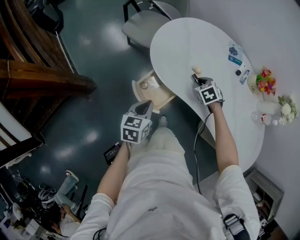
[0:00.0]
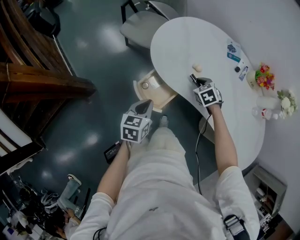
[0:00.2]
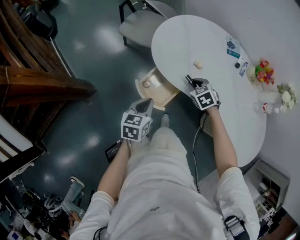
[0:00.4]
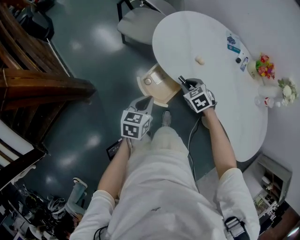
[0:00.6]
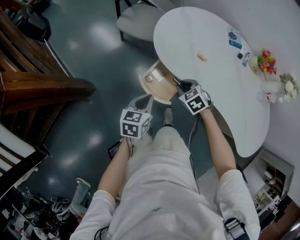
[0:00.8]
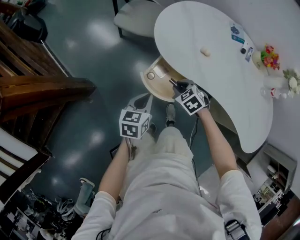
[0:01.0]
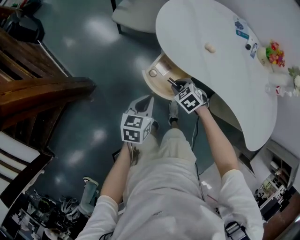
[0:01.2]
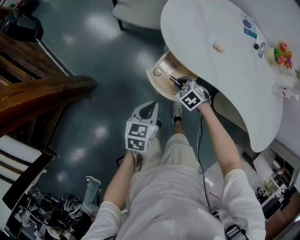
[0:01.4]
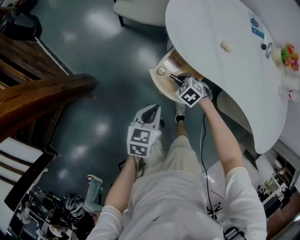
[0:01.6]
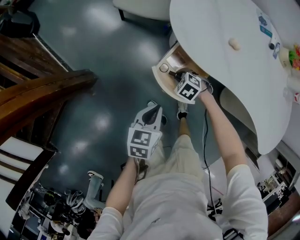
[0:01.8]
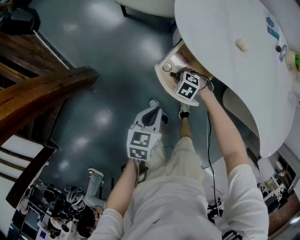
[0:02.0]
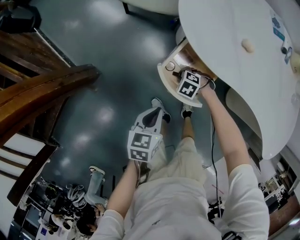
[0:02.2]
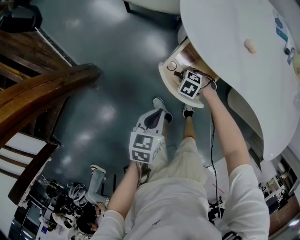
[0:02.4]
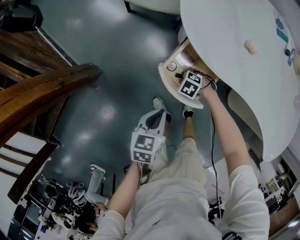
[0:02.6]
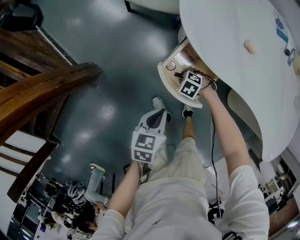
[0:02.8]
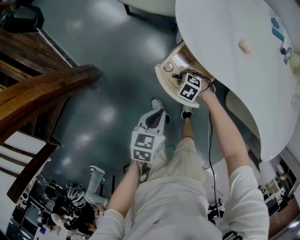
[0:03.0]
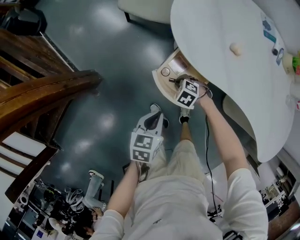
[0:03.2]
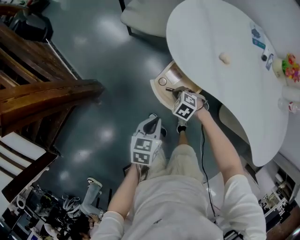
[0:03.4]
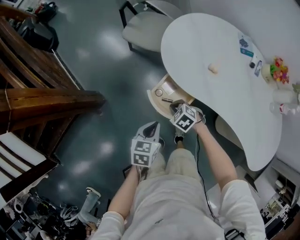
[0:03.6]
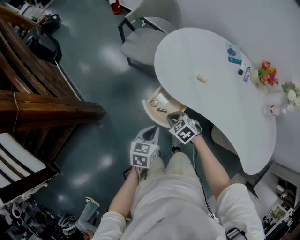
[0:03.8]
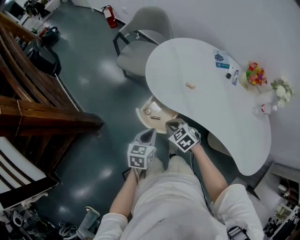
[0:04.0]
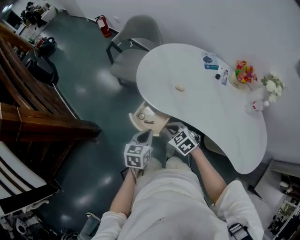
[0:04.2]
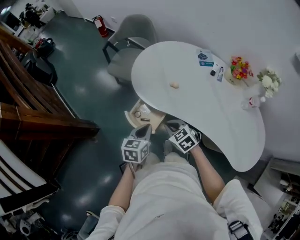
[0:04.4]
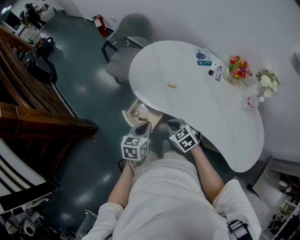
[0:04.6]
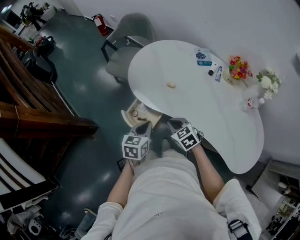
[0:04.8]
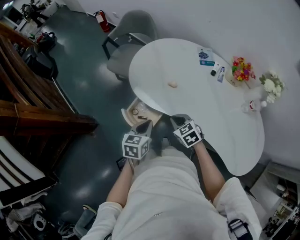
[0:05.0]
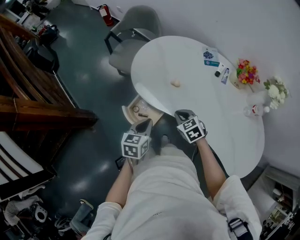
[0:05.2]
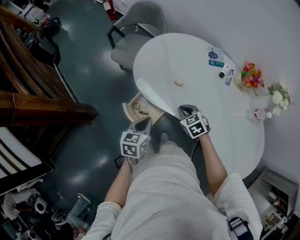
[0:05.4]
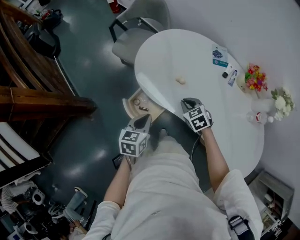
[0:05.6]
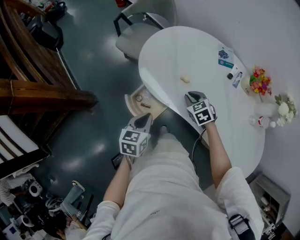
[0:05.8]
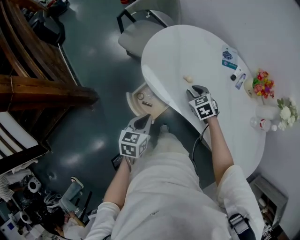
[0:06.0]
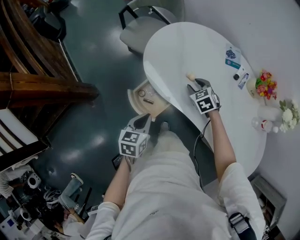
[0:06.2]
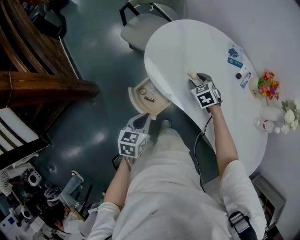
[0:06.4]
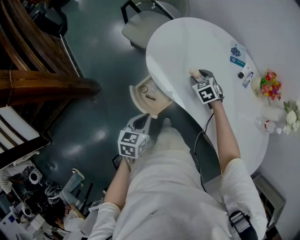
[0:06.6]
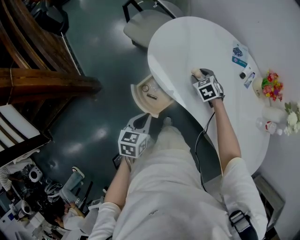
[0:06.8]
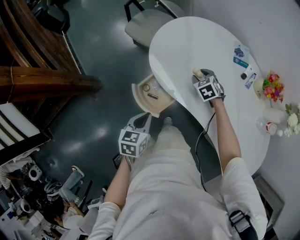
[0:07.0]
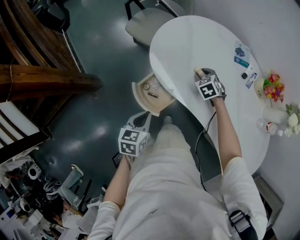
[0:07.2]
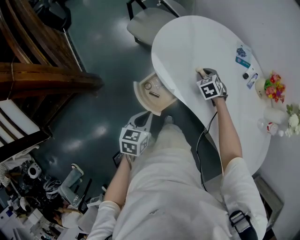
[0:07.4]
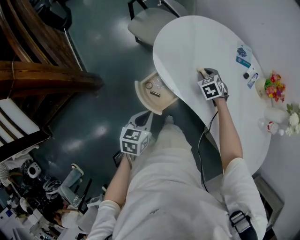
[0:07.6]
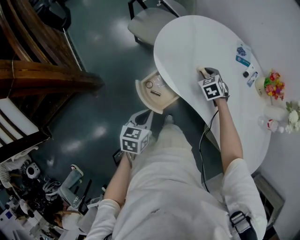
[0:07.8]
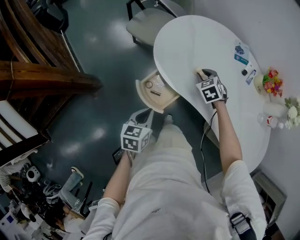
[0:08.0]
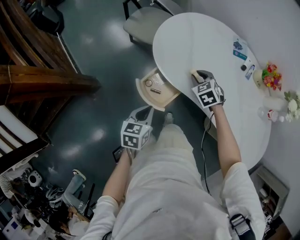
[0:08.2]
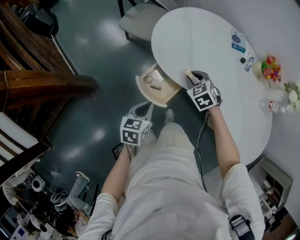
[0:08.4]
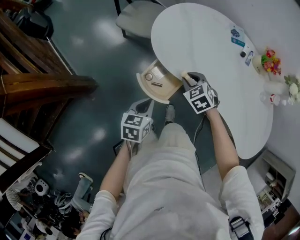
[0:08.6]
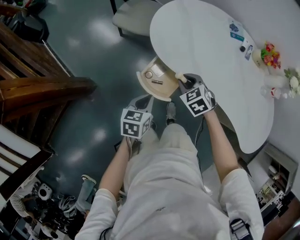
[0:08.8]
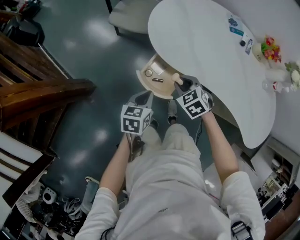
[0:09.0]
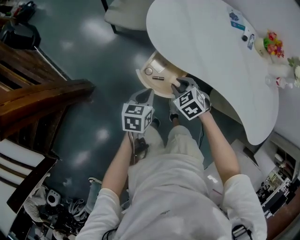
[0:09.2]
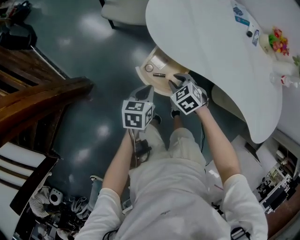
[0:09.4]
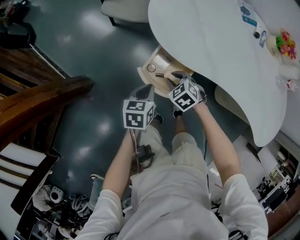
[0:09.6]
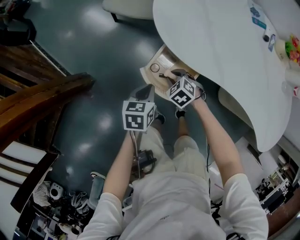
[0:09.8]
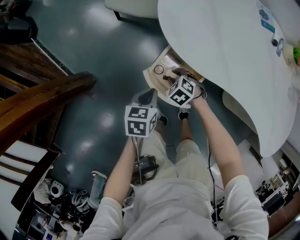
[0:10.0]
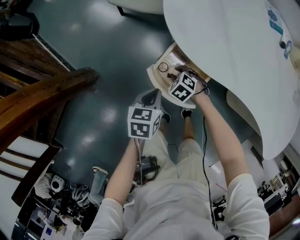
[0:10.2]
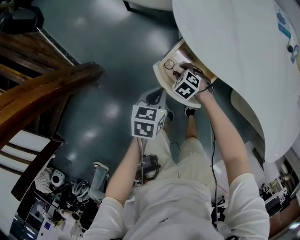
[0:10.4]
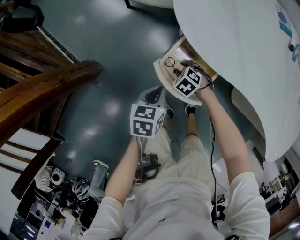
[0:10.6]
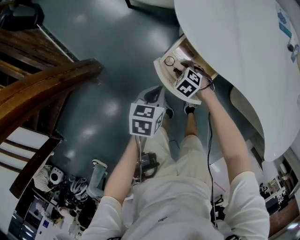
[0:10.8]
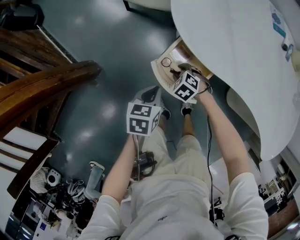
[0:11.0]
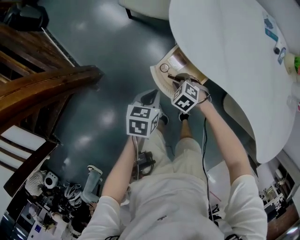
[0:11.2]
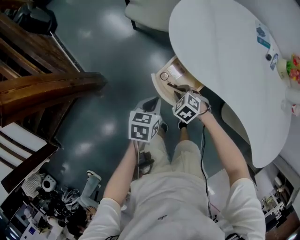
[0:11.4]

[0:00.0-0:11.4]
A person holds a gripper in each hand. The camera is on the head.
0:00.0 to 0:01.4: The left gripper heads to the left and downward, covering about 10 cm. Meanwhile the right gripper moves to the left, backward and downward, approximately 25 cm.
0:01.4 to 0:02.8: The left gripper moves downward, about 10 cm; the right gripper is displaced downward by about 15 cm, and turns by roughly 20 degrees.
0:02.8 to 0:04.2: The left gripper travels upward by about 20 cm, while the right gripper travels upward by some 35 cm, and rotates approximately 40 degrees.
0:04.2 to 0:05.6: The right gripper goes some 20 cm to the right and forward; the left gripper heads to the right, covering some 5 cm.
0:05.6 to 0:07.2: The right gripper heads forward and downward, covering approximately 15 cm; the left gripper shifts about 5 cm to the left.
0:07.2 to 0:08.6: The left gripper moves to the left, roughly 5 cm. Meanwhile the right gripper travels backward, to the left and upward by about 20 cm.
0:08.6 to 0:10.0: The right gripper travels downward and to the left by about 30 cm, while the left gripper goes some 15 cm downward.
0:10.0 to 0:11.4: Both grippers travel together upward, roughly 10 cm.

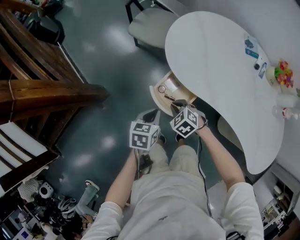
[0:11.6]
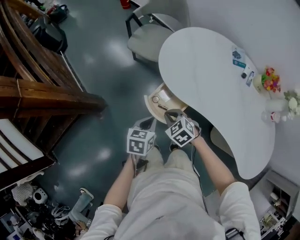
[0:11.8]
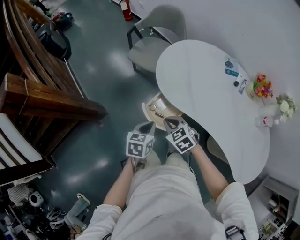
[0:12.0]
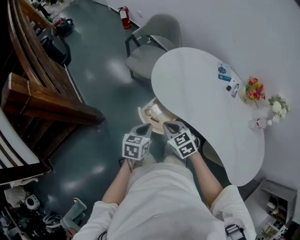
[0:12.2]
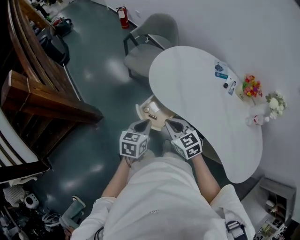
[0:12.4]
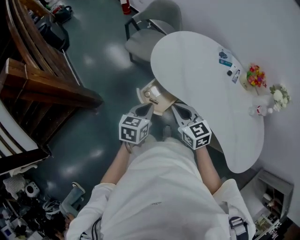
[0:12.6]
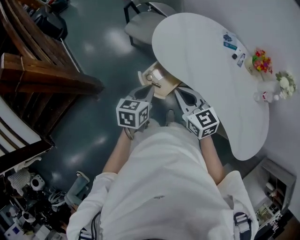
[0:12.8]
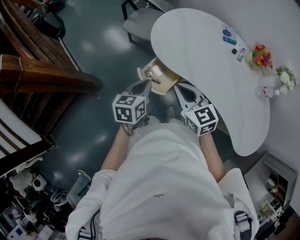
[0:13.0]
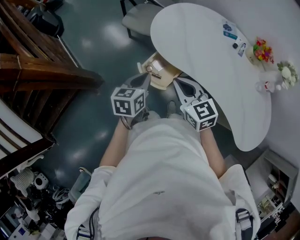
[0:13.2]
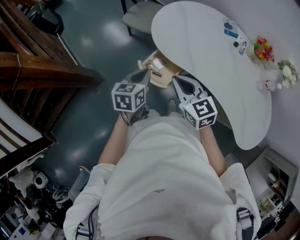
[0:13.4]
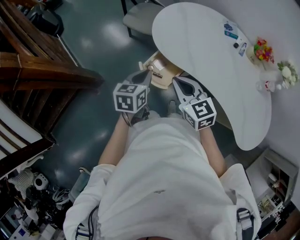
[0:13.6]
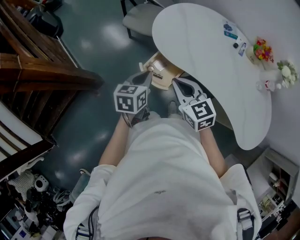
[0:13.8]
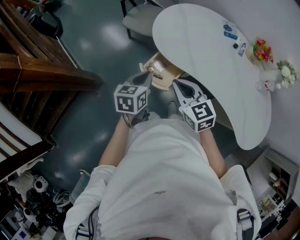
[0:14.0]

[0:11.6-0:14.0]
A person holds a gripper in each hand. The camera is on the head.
0:11.6 to 0:12.8: The left gripper is displaced upward by some 15 cm. The right gripper shifts roughly 25 cm upward, and points its fingers approximately 40 degrees further upward.
0:12.8 to 0:14.0: The grippers stay close to where they were, moving slightly.

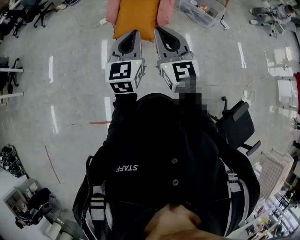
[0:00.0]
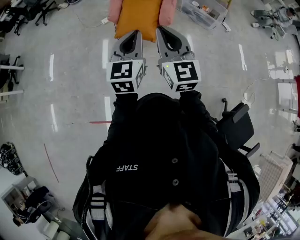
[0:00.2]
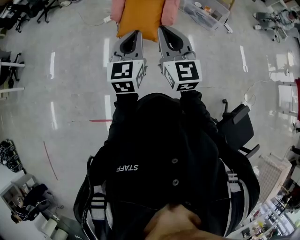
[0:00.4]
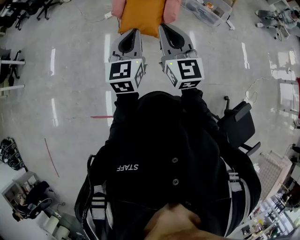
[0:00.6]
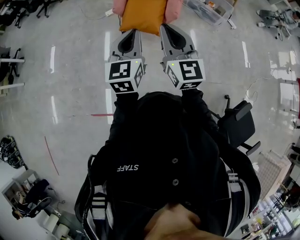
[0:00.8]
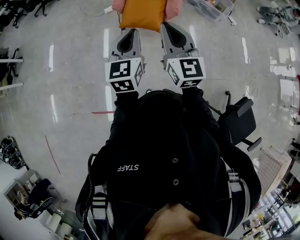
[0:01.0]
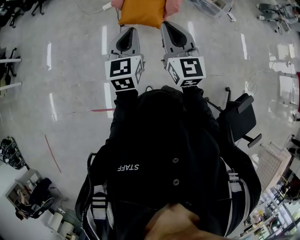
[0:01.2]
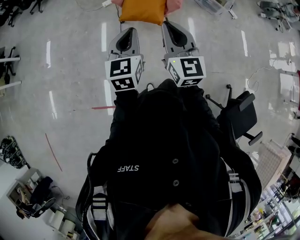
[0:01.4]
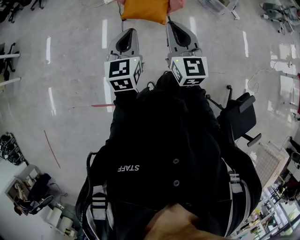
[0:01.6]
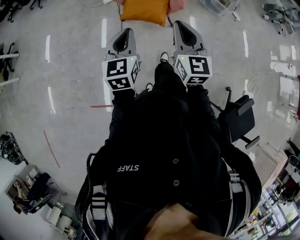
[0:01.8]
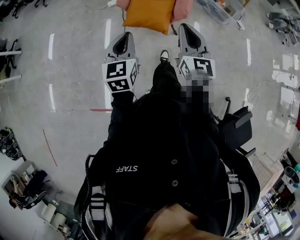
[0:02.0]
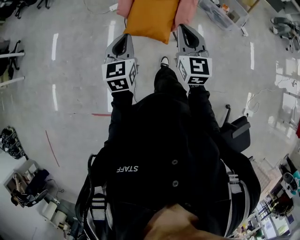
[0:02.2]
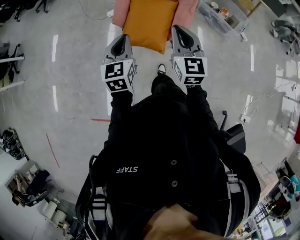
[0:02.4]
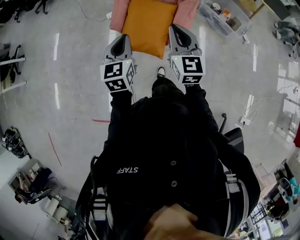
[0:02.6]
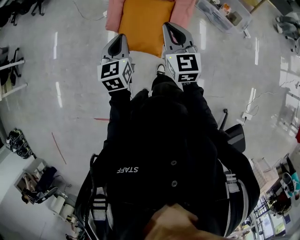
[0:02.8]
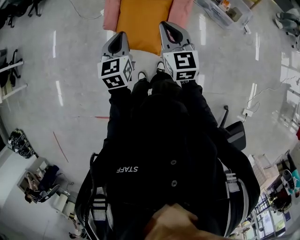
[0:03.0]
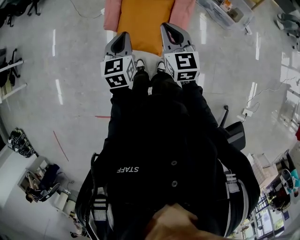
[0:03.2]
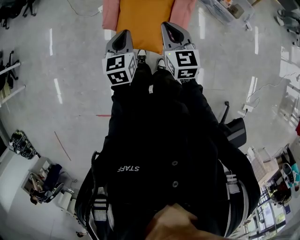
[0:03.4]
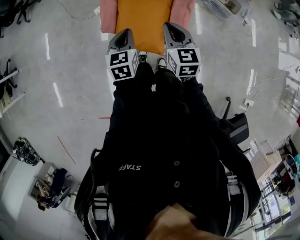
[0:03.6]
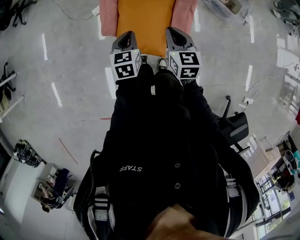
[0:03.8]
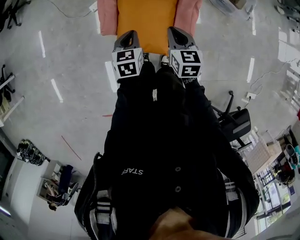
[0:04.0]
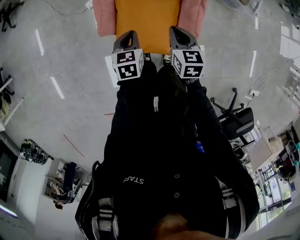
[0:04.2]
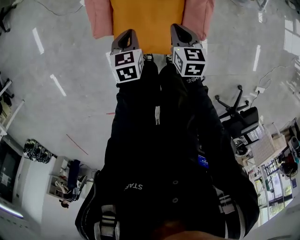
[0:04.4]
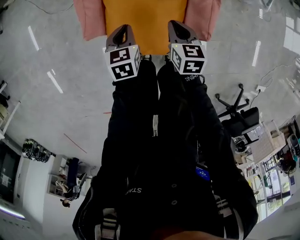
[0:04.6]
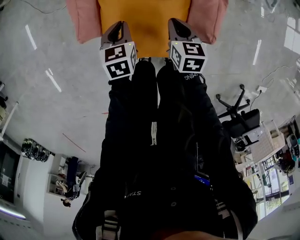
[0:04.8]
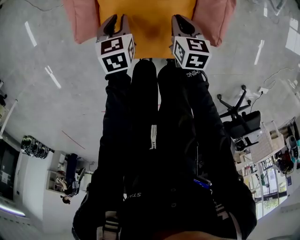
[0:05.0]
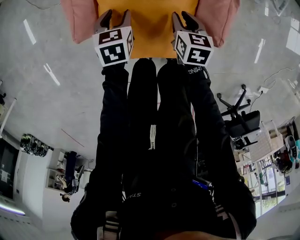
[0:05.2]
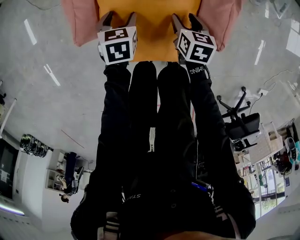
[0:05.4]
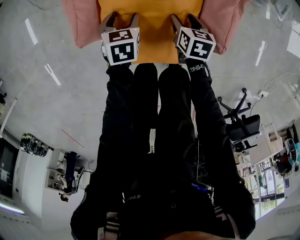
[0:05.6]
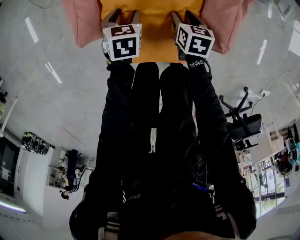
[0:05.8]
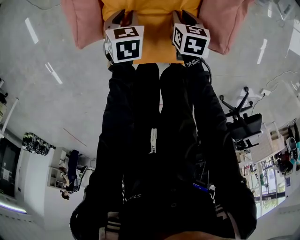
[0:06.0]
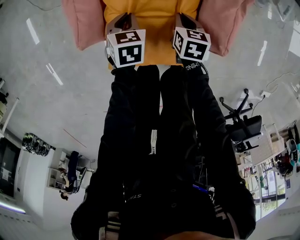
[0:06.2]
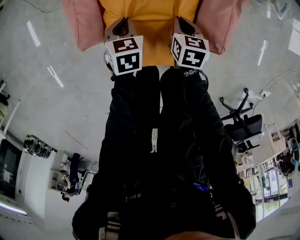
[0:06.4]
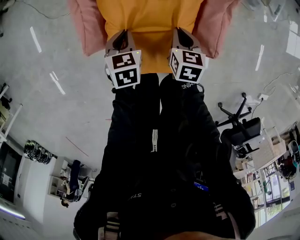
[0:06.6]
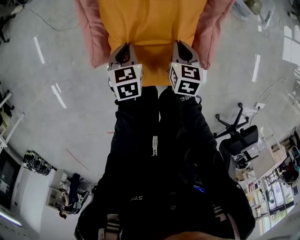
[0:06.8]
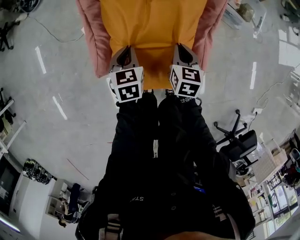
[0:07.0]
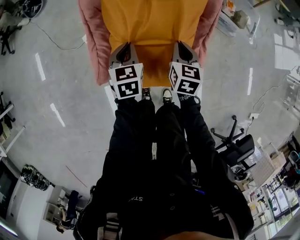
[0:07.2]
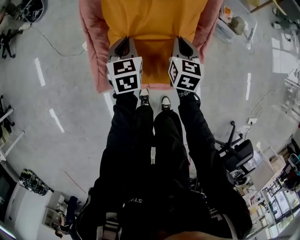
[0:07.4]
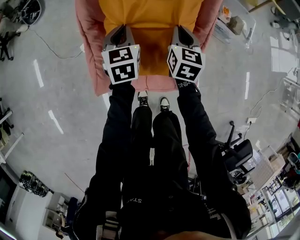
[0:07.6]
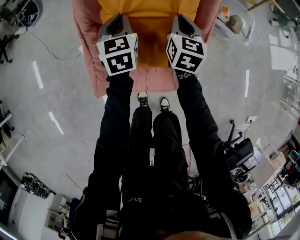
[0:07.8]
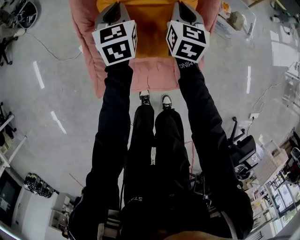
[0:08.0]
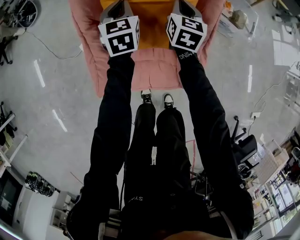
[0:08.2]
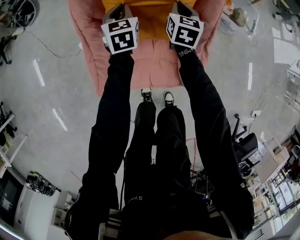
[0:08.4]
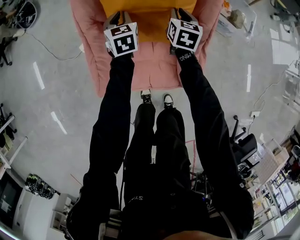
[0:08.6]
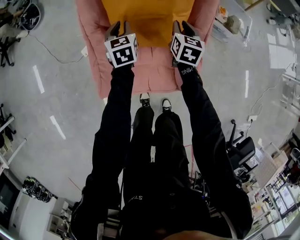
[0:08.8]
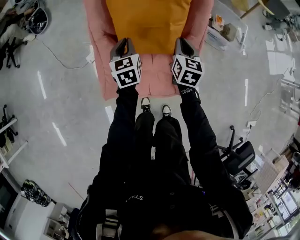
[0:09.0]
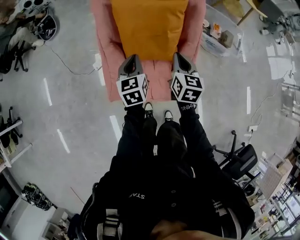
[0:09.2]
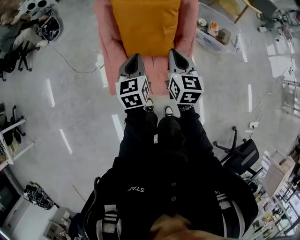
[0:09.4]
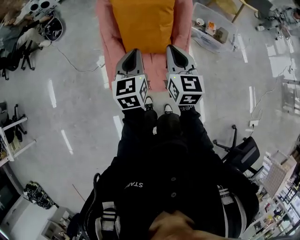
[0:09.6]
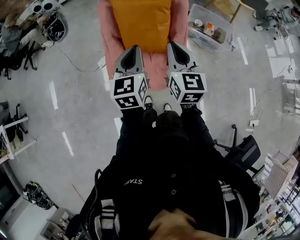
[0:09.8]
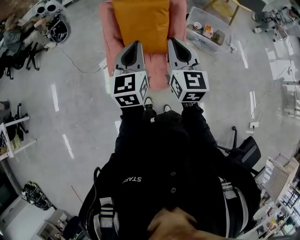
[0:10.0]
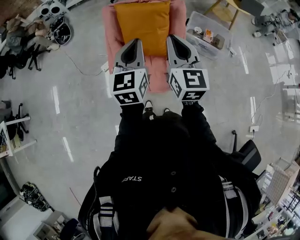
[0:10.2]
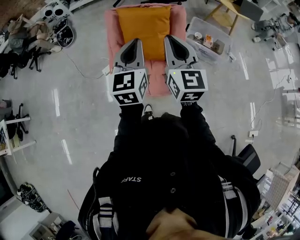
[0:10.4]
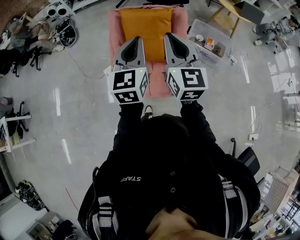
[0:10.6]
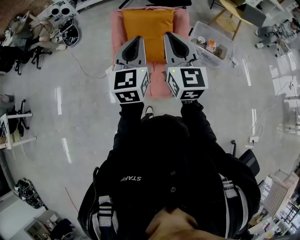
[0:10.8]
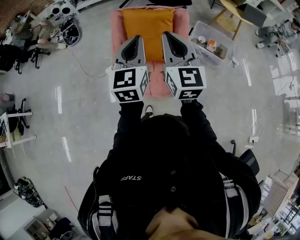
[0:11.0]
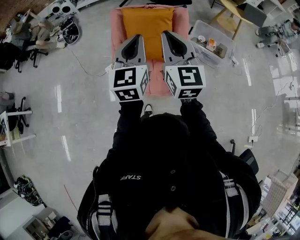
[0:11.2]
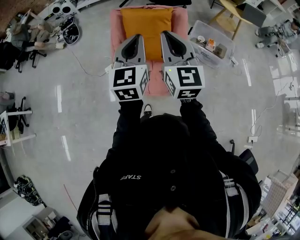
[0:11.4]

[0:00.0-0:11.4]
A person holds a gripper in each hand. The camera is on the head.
0:00.0 to 0:01.4: The two grippers go roughly 10 cm to the left and downward.
0:01.4 to 0:02.8: Both grippers move forward, roughly 35 cm.
0:02.8 to 0:04.2: The two grippers go about 30 cm downward and forward. The left gripper changes its angle by about 30 degrees. Meanwhile the right gripper turns by some 30 degrees.
0:04.2 to 0:05.6: Both grippers travel together downward, roughly 25 cm. The right gripper turns by approximately 20 degrees, and opens its fingers. Meanwhile the left gripper opens up.
0:05.6 to 0:07.2: Both grippers move upward and forward, approximately 25 cm. The right gripper changes its angle by about 20 degrees, and closes. The left gripper closes its fingers.
0:07.2 to 0:08.6: The two grippers go roughly 15 cm forward.
0:08.6 to 0:10.0: The two grippers go about 50 cm upward and backward. The right gripper swivels approximately 30 degrees. The left gripper turns by about 30 degrees.
0:10.0 to 0:11.4: The two grippers go about 10 cm upward.
